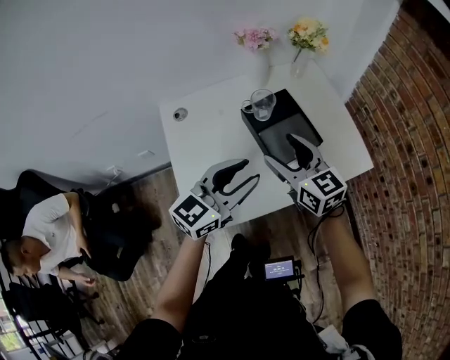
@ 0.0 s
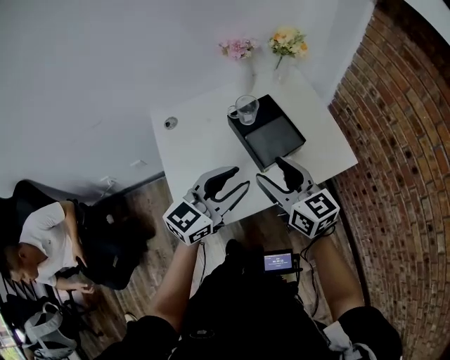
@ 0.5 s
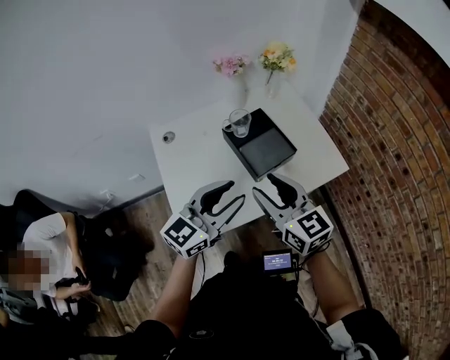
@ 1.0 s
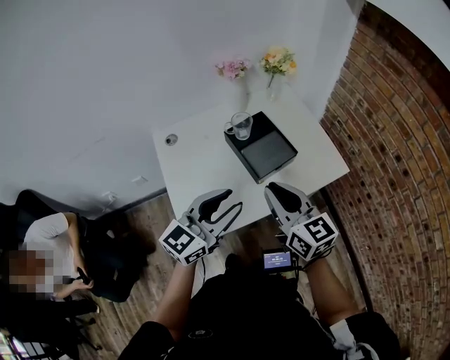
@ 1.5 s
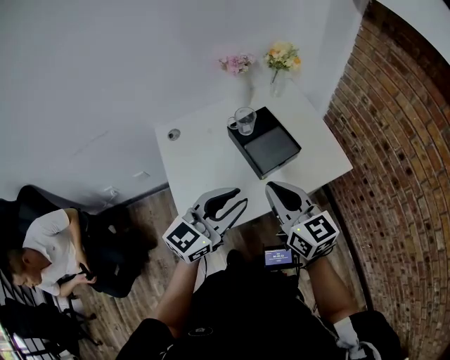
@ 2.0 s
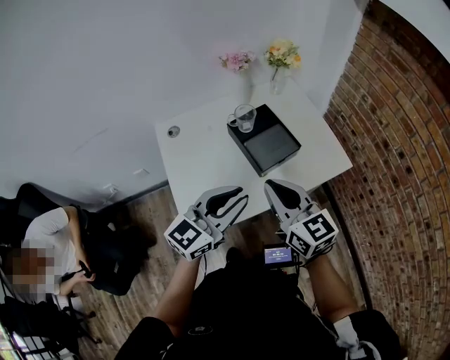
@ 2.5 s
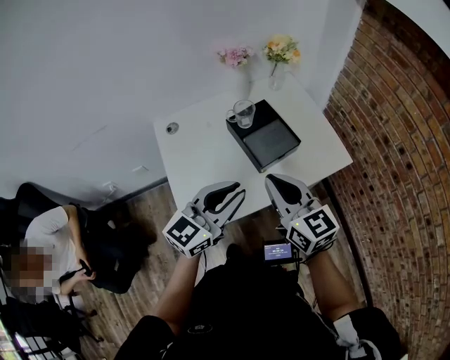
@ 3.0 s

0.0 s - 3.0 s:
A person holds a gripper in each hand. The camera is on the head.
0.0 s - 1.5 s: The right gripper travels backward and upward by about 15 cm, and closes up; the left gripper goes some 10 cm backward.
1.5 s - 3.0 s: The grippers make only small movements.

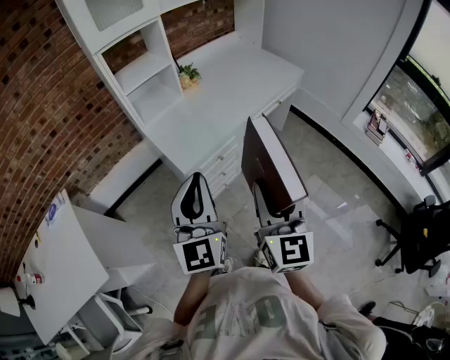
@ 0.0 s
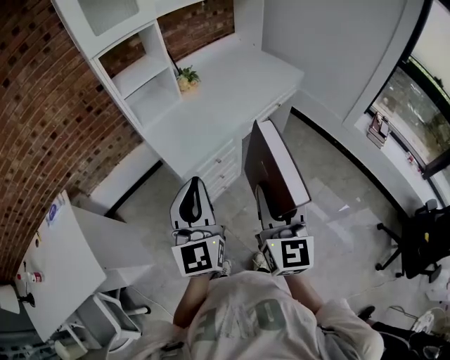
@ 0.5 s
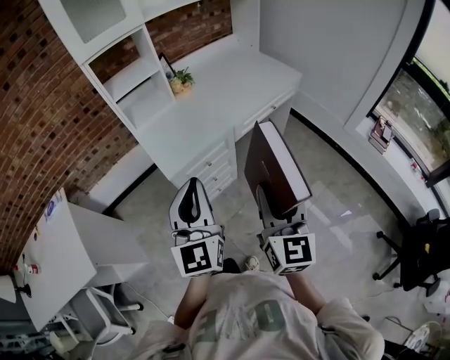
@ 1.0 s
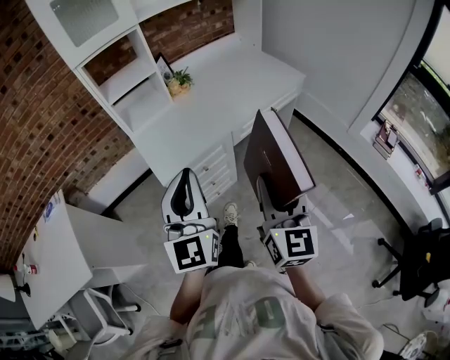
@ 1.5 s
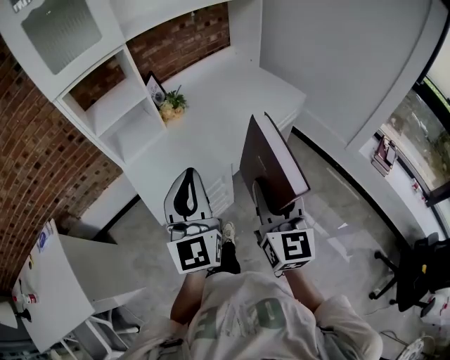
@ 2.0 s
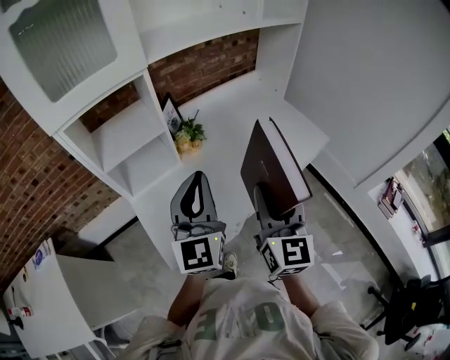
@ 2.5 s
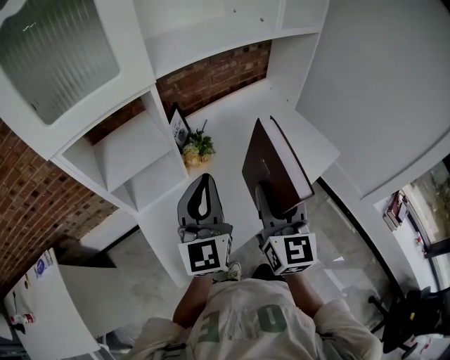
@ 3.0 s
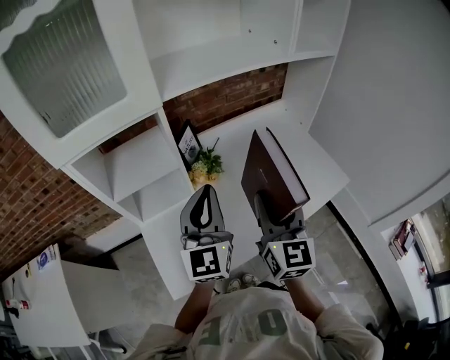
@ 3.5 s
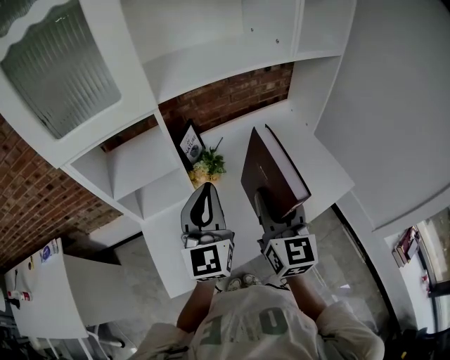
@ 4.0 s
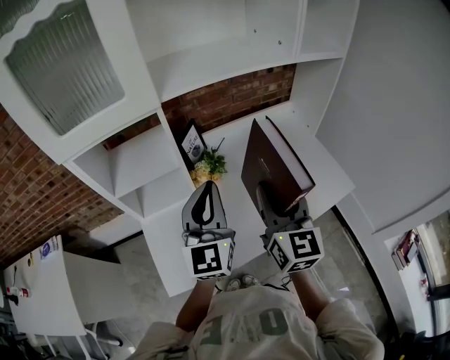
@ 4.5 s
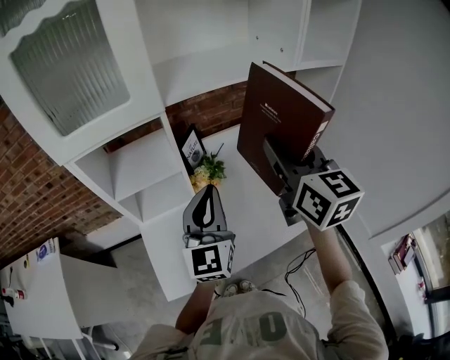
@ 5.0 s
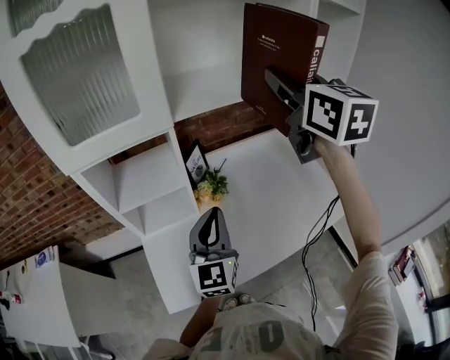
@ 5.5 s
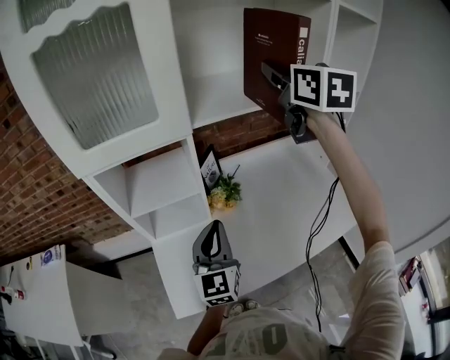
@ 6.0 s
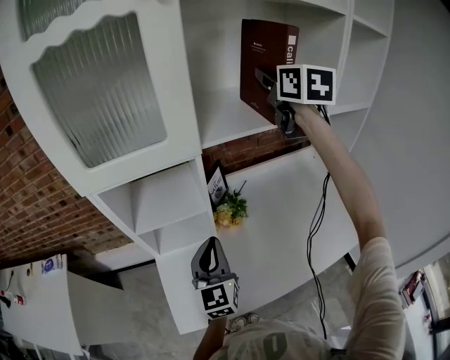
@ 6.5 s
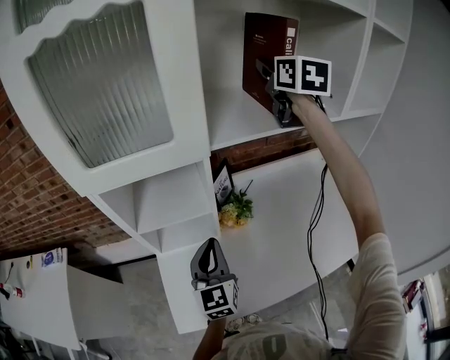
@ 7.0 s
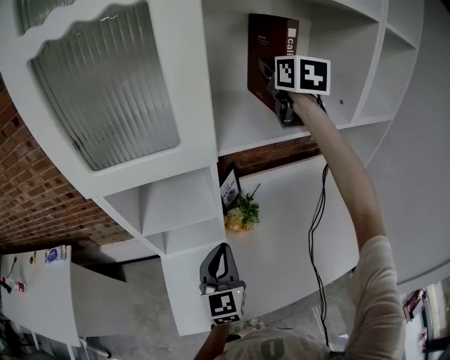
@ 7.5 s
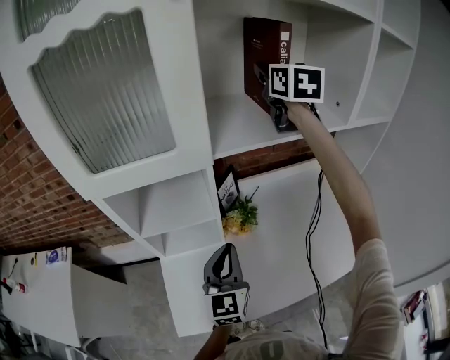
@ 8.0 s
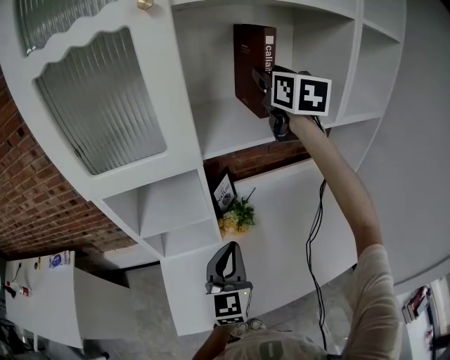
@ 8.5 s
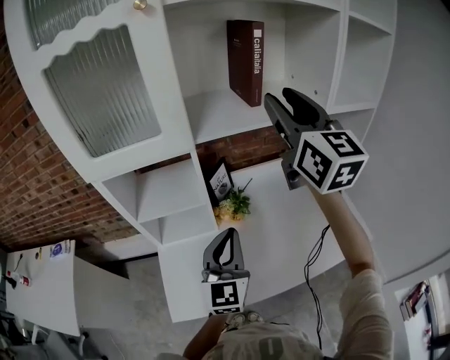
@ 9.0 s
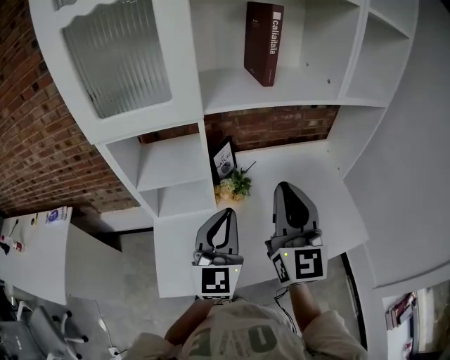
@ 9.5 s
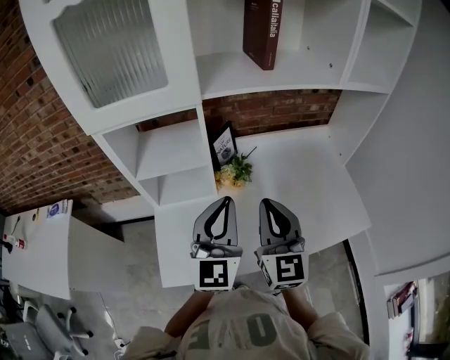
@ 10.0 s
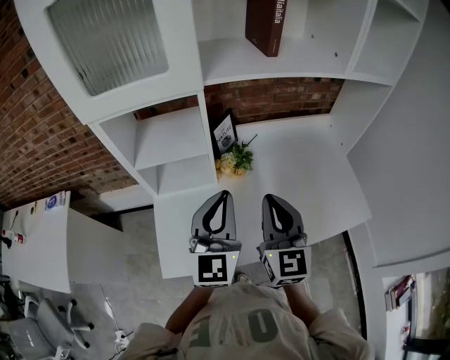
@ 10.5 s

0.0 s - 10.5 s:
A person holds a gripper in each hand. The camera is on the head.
0.0 s - 2.0 s: The grippers both shift forward and to the right by approximately 25 cm.
2.0 s - 4.0 s: Both grippers move forward, some 30 cm.
4.0 s - 6.5 s: The right gripper heads forward and upward, covering approximately 40 cm, while the left gripper moves downward and to the left, roughly 10 cm.
6.5 s - 8.5 s: The right gripper travels forward and back again, approximately 10 cm each way. Meanwhile the left gripper shifts some 5 cm to the right.
8.5 s - 10.5 s: The right gripper shifts some 40 cm backward and downward, and closes up, while the left gripper goes roughly 5 cm backward.

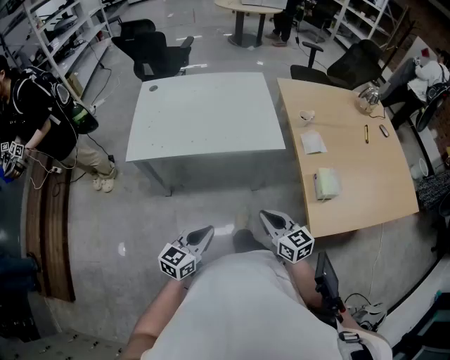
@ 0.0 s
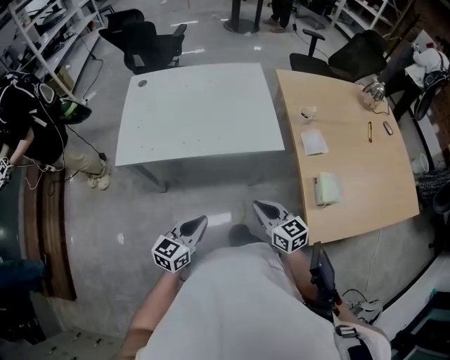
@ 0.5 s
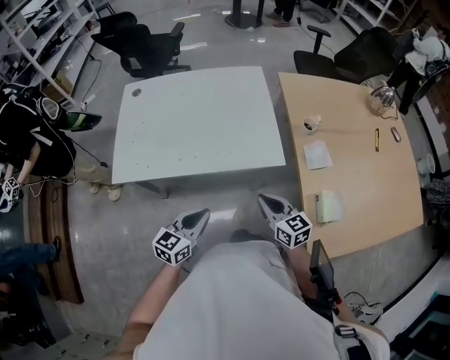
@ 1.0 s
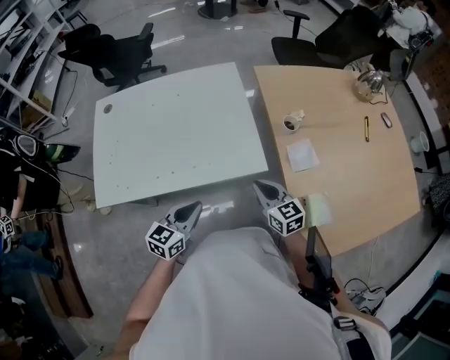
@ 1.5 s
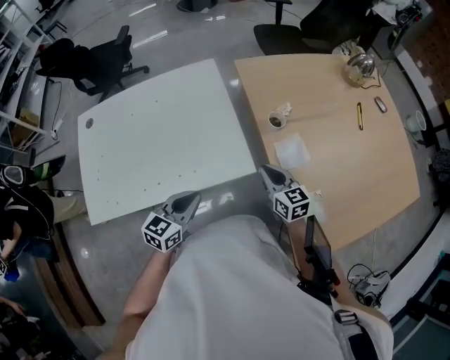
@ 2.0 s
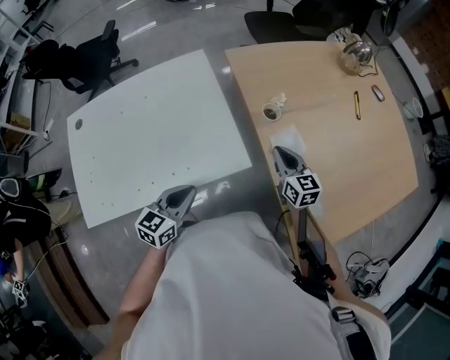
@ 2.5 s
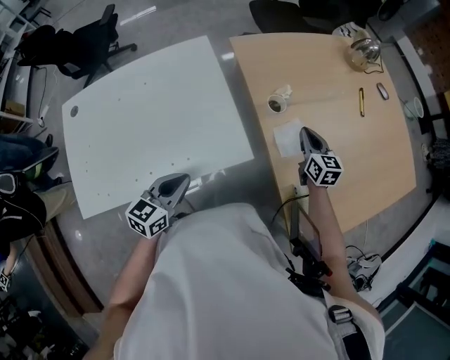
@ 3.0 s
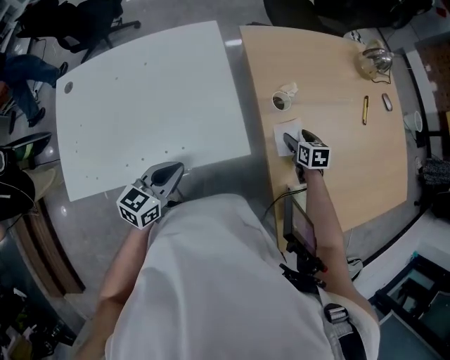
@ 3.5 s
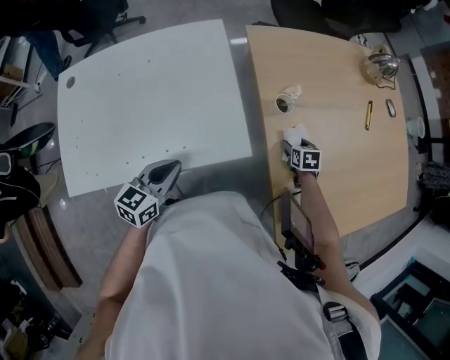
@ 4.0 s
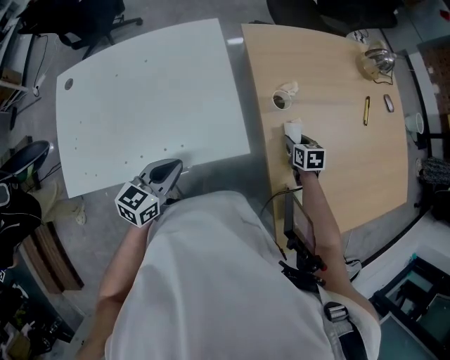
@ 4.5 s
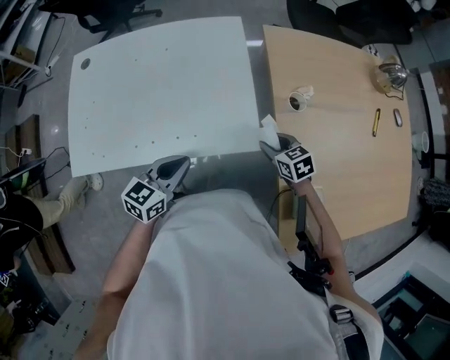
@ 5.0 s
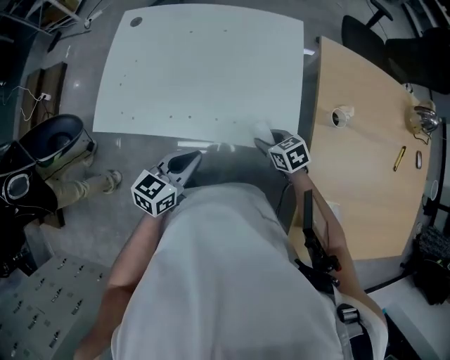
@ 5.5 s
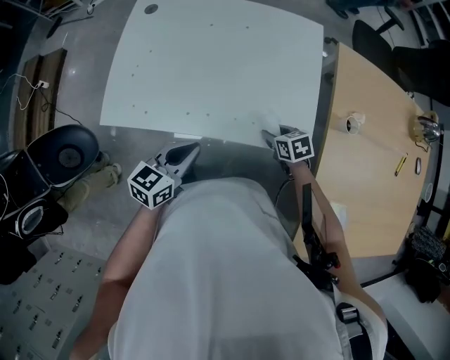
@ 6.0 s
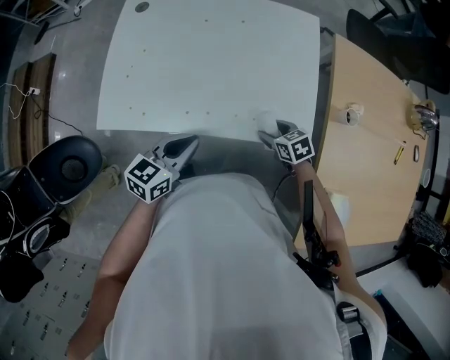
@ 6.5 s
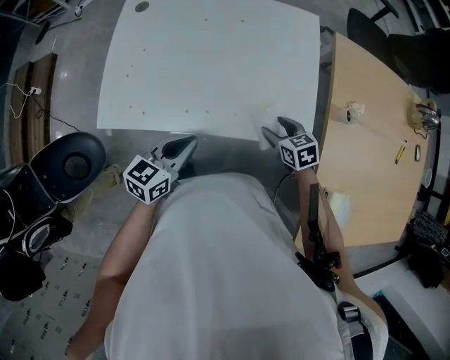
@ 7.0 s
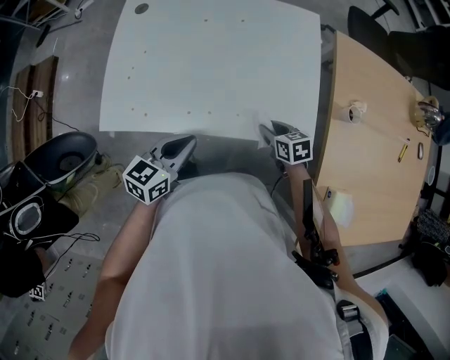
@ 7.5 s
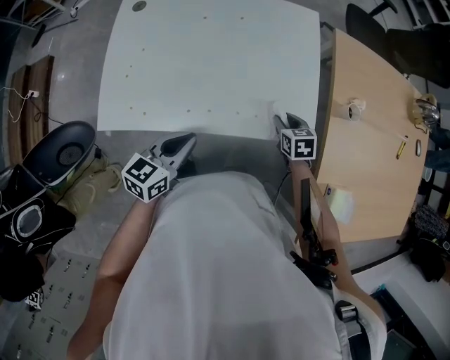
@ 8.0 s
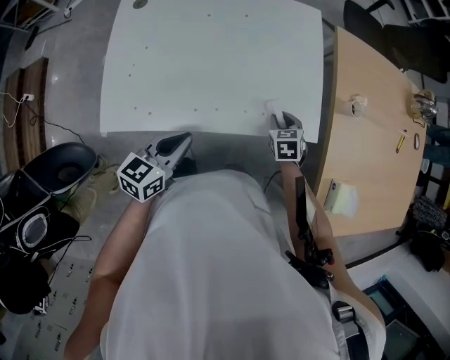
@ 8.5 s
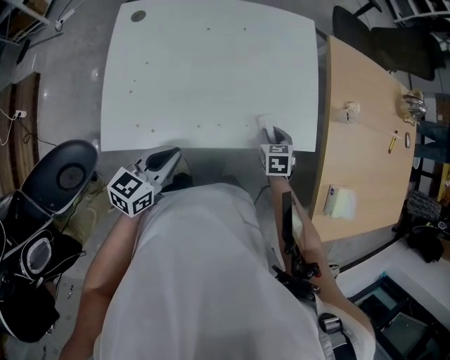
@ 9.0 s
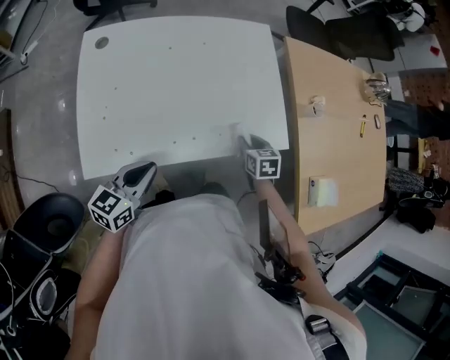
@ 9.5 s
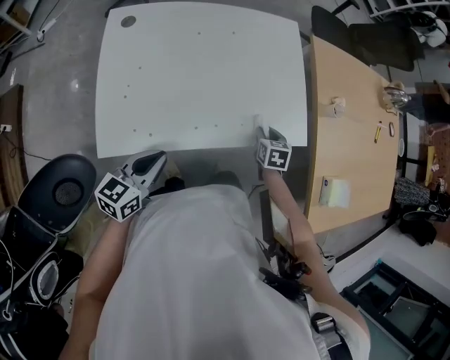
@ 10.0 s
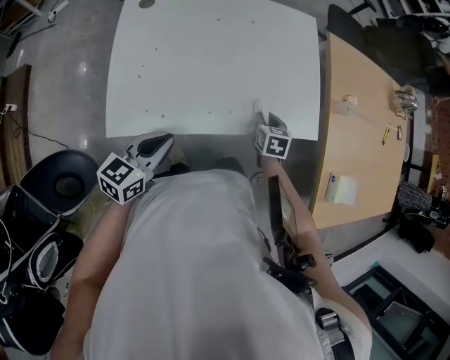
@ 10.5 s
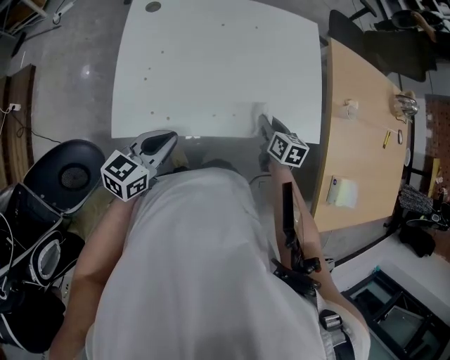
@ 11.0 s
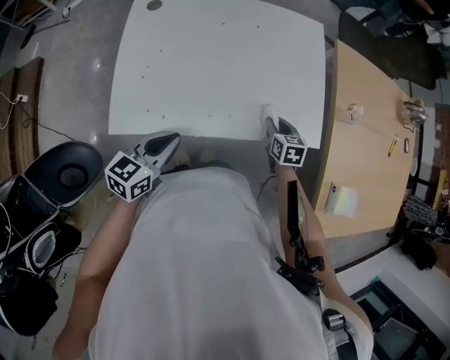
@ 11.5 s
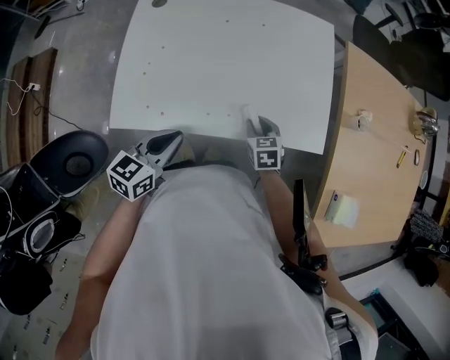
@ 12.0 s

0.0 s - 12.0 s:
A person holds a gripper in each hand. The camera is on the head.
0.0 s - 2.0 s: Both grippers move forward, roughly 35 cm.
2.0 s - 4.0 s: The left gripper moves some 5 cm. Meanwhile the right gripper moves downward, to the right and forward, about 25 cm, points its fingers about 40 degrees further downward, and opens up.
4.0 s - 6.0 s: The left gripper ends up approximately 15 cm from where it was. The right gripper moves about 35 cm, swivels about 40 degrees, and closes.
6.0 s - 8.0 s: The right gripper rotates about 20 degrees.
8.0 s - 10.0 s: The right gripper changes place by roughly 5 cm, and swivels approximately 20 degrees; the left gripper travels to the left by some 10 cm.
10.0 s - 12.0 s: The right gripper travels to the left by approximately 10 cm, and swivels some 20 degrees.

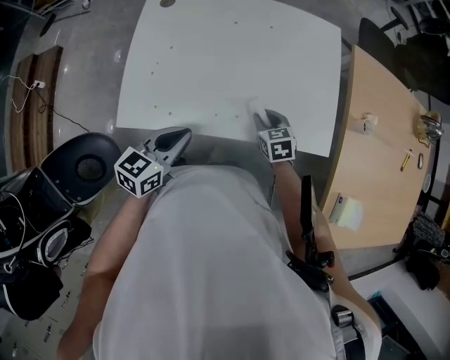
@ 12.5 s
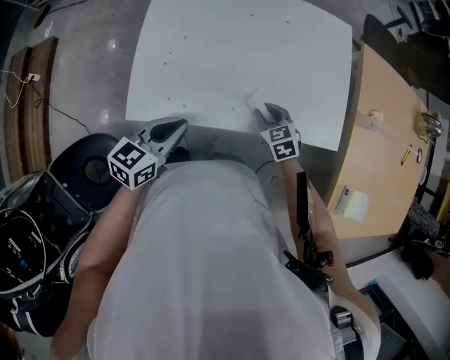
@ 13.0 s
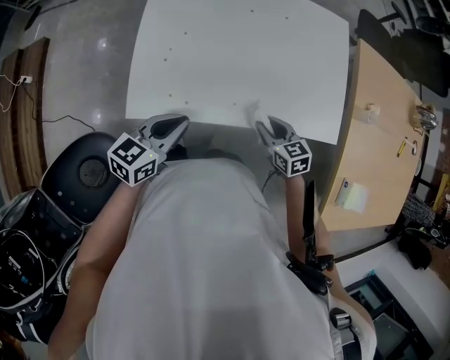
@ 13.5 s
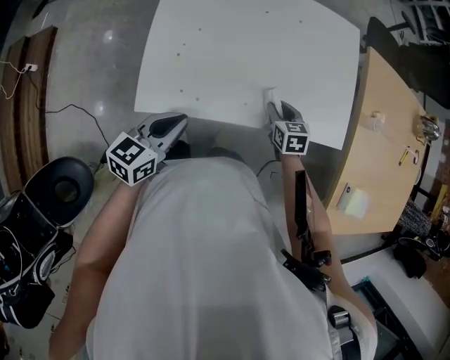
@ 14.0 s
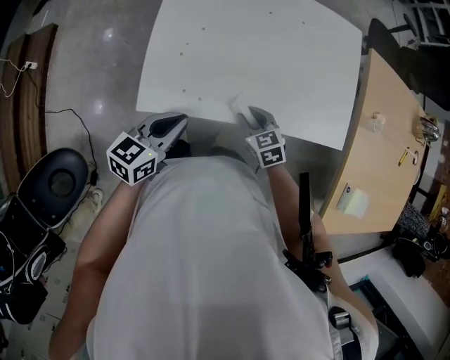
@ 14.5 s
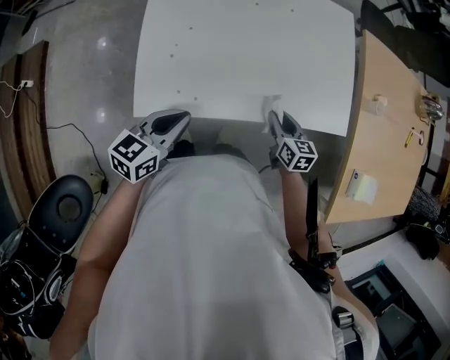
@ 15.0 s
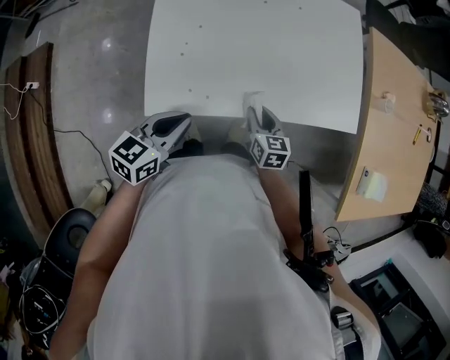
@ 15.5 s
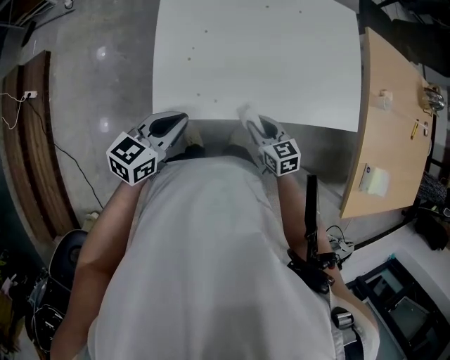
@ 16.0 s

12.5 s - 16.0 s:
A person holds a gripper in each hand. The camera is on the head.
12.5 s - 14.5 s: The left gripper shifts about 10 cm to the left; the right gripper moves to the left and backward, approximately 15 cm.
14.5 s - 16.0 s: The right gripper travels to the right and back again, about 10 cm each way. The left gripper moves to the left, approximately 5 cm.
